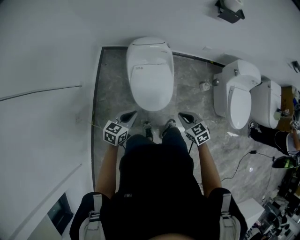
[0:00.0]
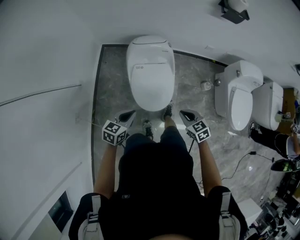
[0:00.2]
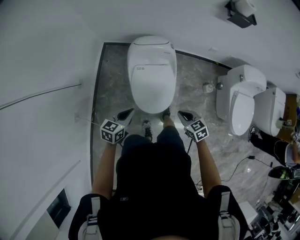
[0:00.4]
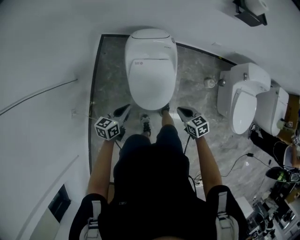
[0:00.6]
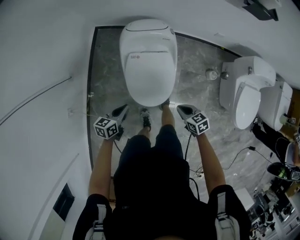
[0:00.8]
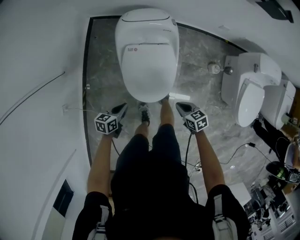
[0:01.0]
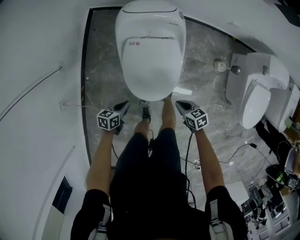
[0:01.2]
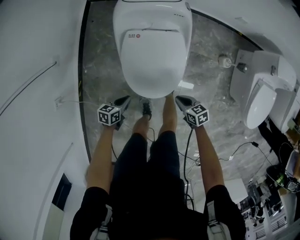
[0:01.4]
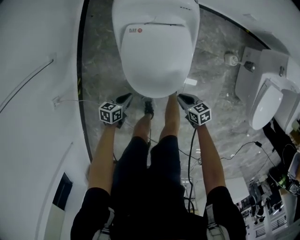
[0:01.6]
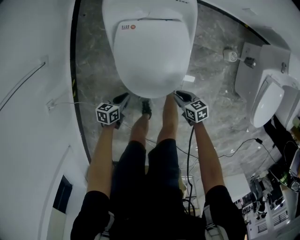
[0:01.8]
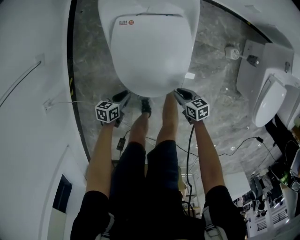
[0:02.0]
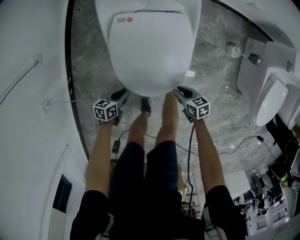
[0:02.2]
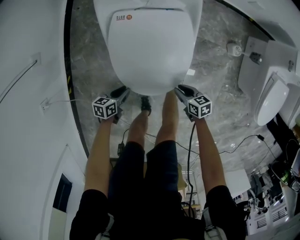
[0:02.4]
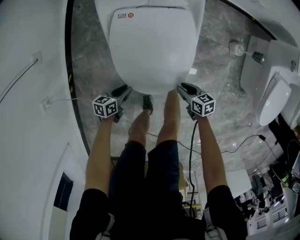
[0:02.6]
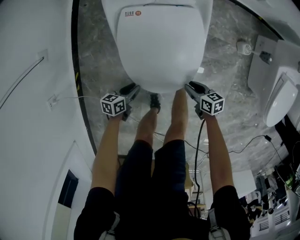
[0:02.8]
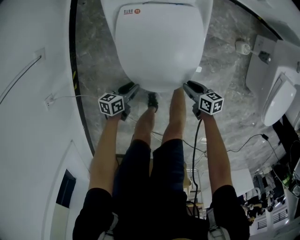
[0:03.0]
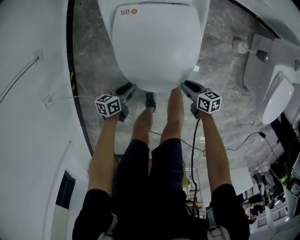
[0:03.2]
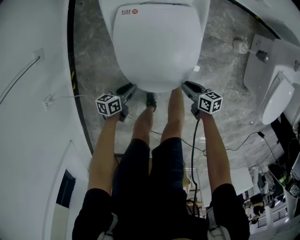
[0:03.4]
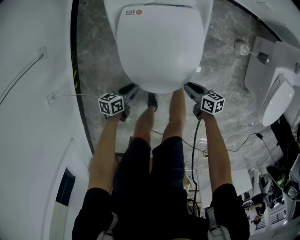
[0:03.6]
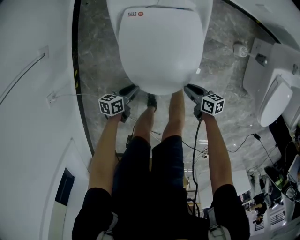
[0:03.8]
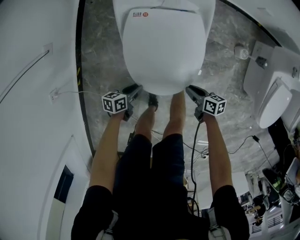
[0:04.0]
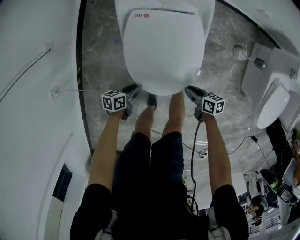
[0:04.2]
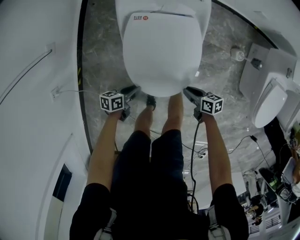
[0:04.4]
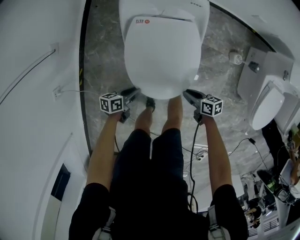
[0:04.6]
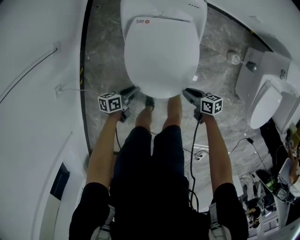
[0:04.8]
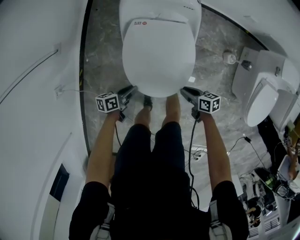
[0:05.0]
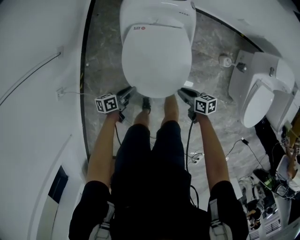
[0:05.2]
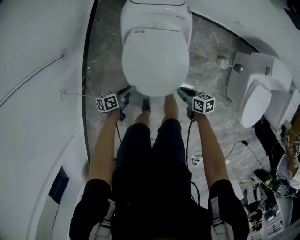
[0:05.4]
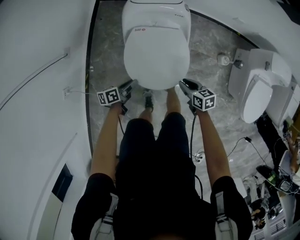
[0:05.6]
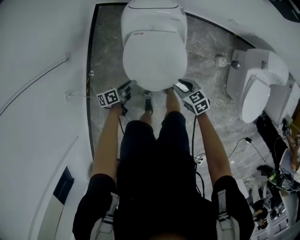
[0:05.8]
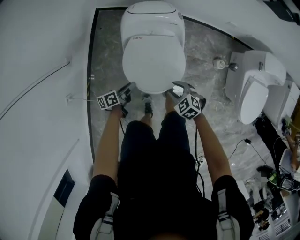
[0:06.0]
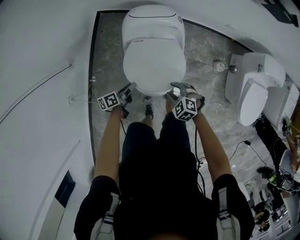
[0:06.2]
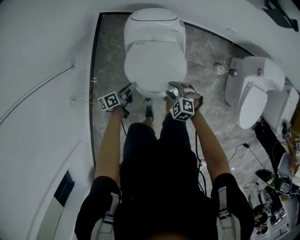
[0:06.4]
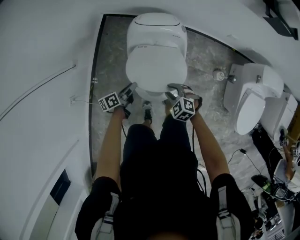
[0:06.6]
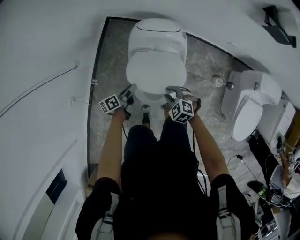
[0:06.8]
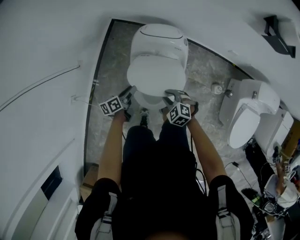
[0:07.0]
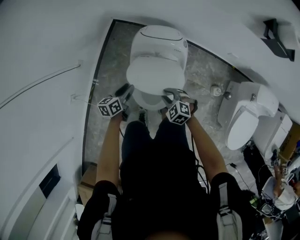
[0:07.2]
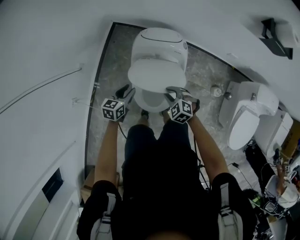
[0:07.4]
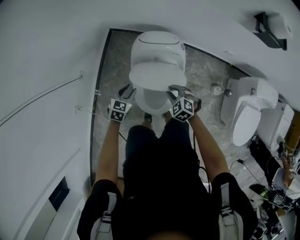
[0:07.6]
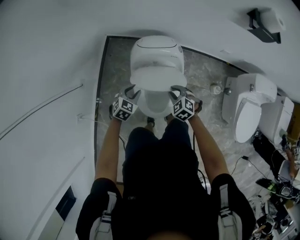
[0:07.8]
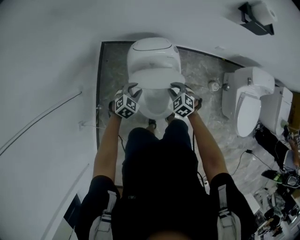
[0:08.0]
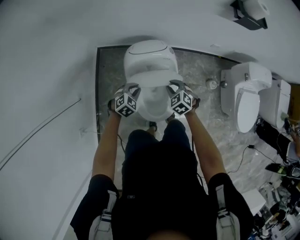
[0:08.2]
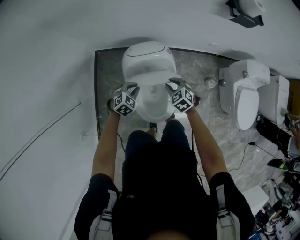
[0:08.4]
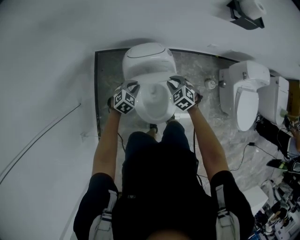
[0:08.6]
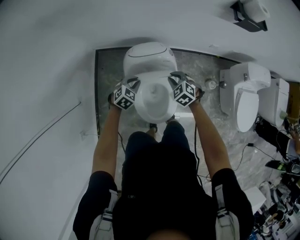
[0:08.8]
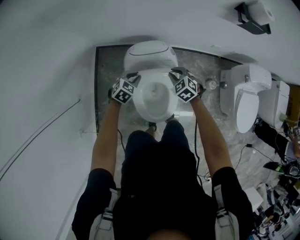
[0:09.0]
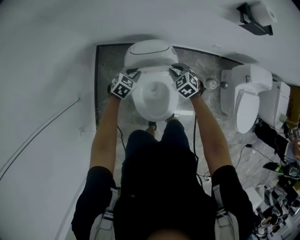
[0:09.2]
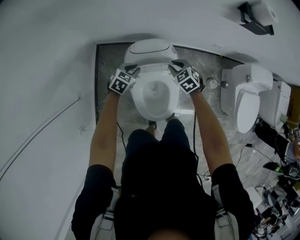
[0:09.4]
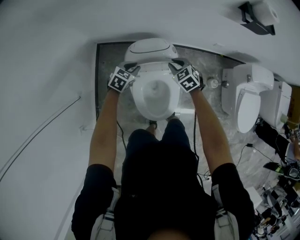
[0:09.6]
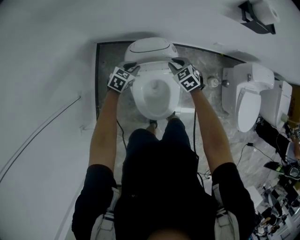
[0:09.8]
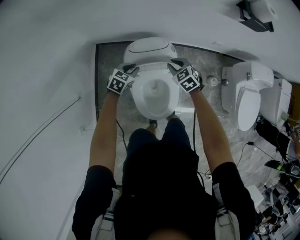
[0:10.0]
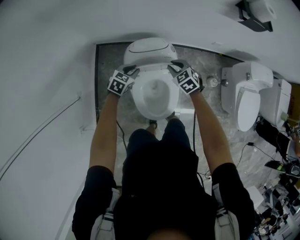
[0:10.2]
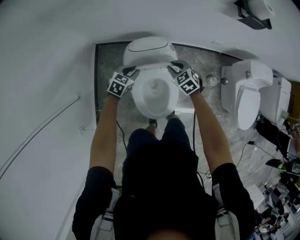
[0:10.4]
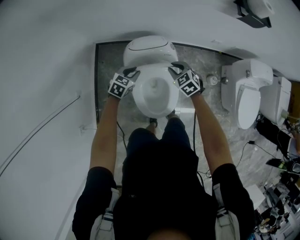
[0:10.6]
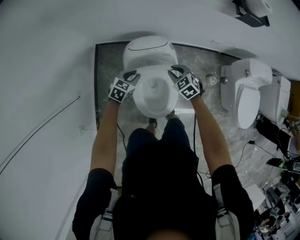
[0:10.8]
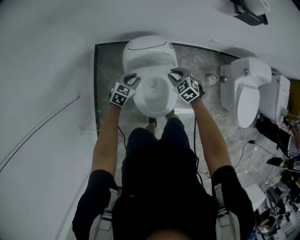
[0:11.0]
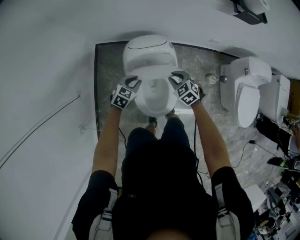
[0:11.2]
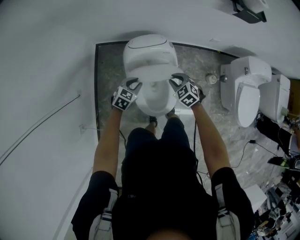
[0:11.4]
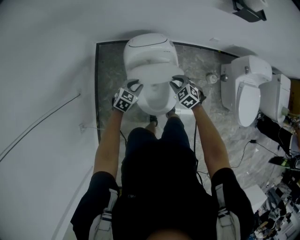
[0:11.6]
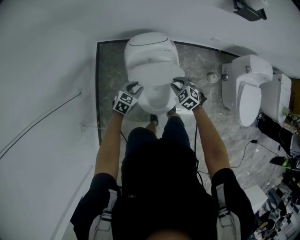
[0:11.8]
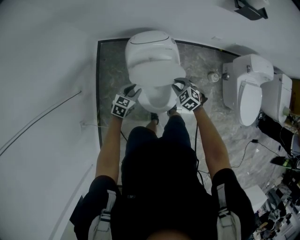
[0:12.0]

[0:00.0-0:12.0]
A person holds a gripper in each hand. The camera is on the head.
0:00.0 to 0:01.6: Both grippers move downward, approximately 40 cm. The left gripper turns by about 30 degrees; the right gripper changes its angle by approximately 30 degrees.
0:01.6 to 0:03.0: Both grippers move downward, some 10 cm. The left gripper opens.
0:03.0 to 0:04.4: The grippers both shift upward by approximately 5 cm.
0:04.4 to 0:06.0: Both grippers travel together upward, approximately 20 cm. The right gripper rolls counterclockwise, seen from behind, by some 60 degrees. The left gripper swivels about 20 degrees.
0:06.0 to 0:07.6: The right gripper is displaced forward and upward by roughly 15 cm, and closes. The left gripper goes approximately 15 cm upward and forward, and rolls clockwise, seen from behind, by approximately 60 degrees.
0:07.6 to 0:09.0: The two grippers go about 15 cm forward. The left gripper turns by roughly 30 degrees.
0:09.0 to 0:10.4: The grippers make only small movements.
0:10.4 to 0:12.0: The grippers both shift backward by roughly 15 cm.

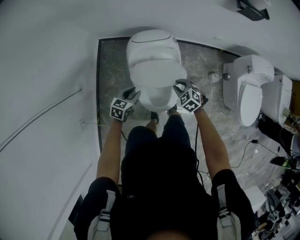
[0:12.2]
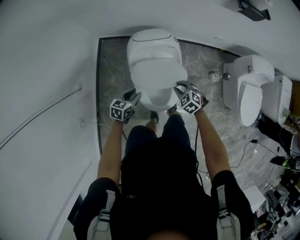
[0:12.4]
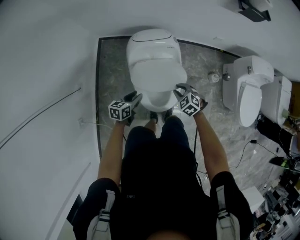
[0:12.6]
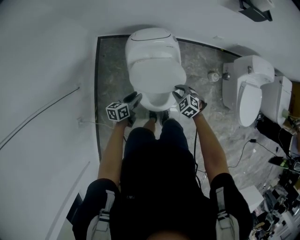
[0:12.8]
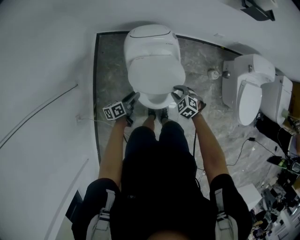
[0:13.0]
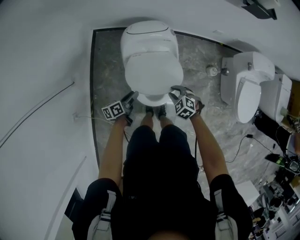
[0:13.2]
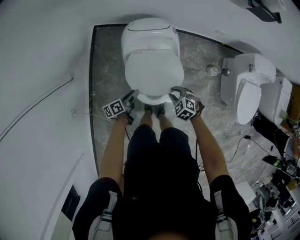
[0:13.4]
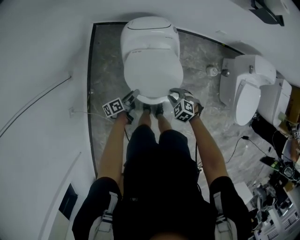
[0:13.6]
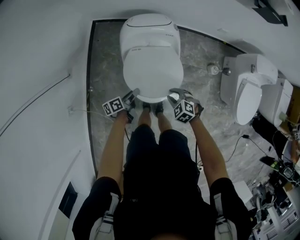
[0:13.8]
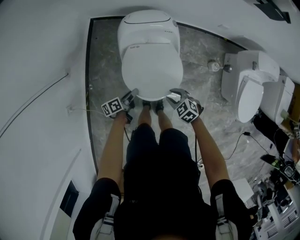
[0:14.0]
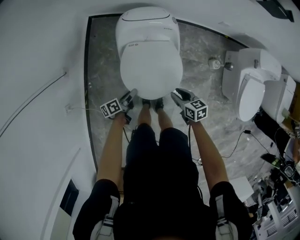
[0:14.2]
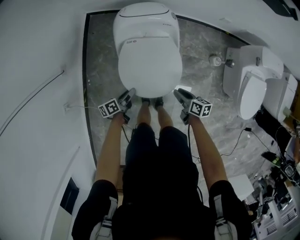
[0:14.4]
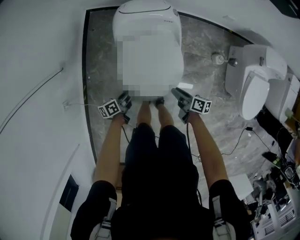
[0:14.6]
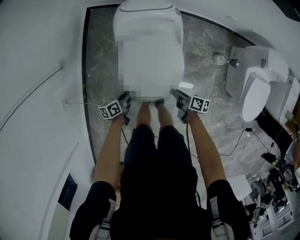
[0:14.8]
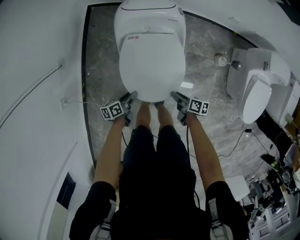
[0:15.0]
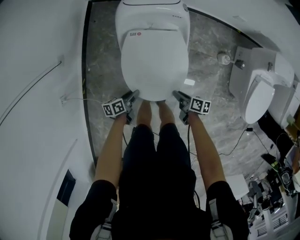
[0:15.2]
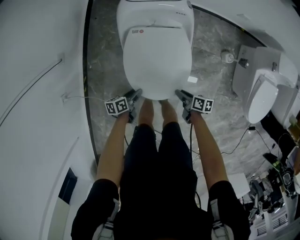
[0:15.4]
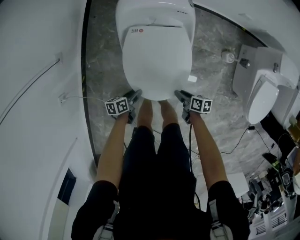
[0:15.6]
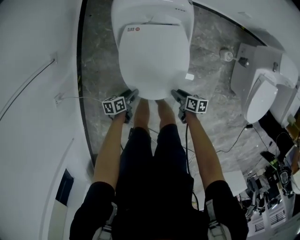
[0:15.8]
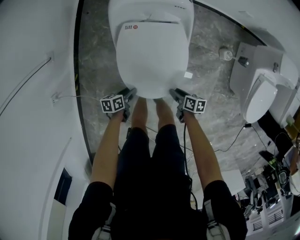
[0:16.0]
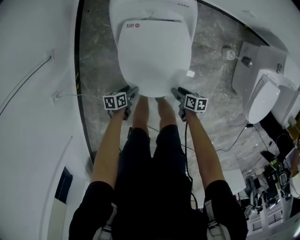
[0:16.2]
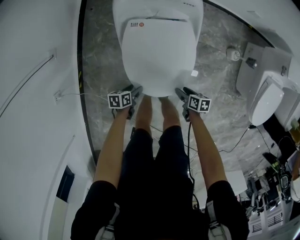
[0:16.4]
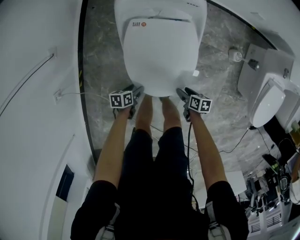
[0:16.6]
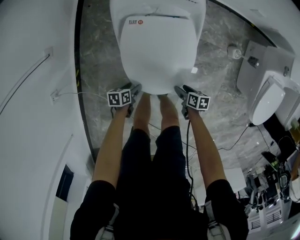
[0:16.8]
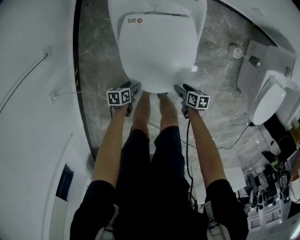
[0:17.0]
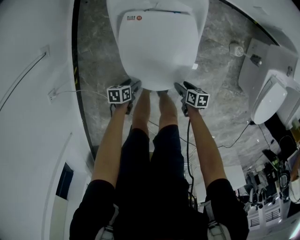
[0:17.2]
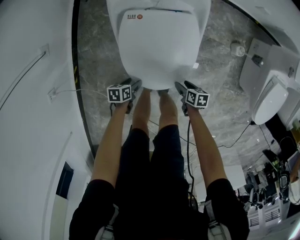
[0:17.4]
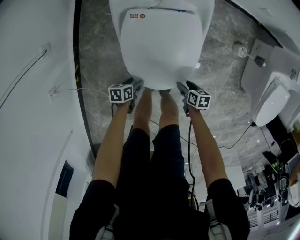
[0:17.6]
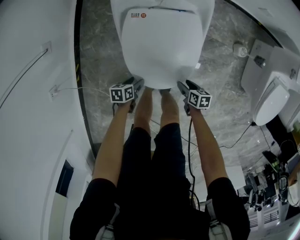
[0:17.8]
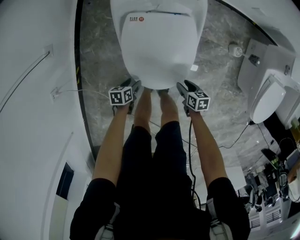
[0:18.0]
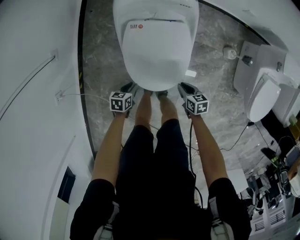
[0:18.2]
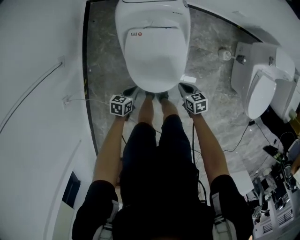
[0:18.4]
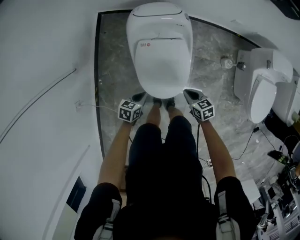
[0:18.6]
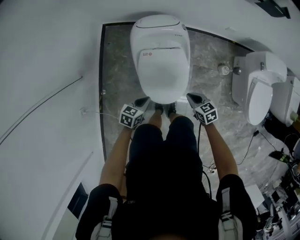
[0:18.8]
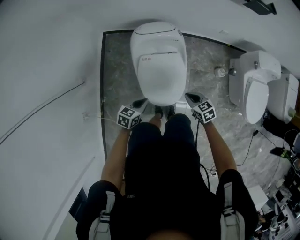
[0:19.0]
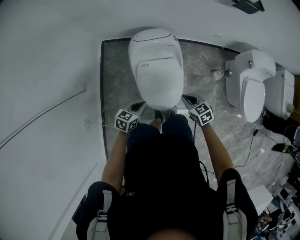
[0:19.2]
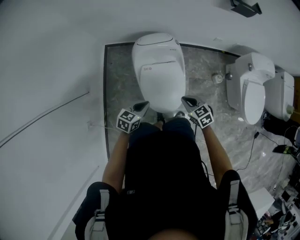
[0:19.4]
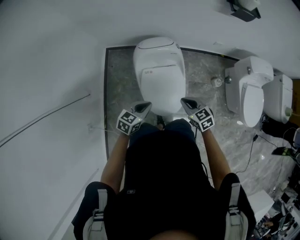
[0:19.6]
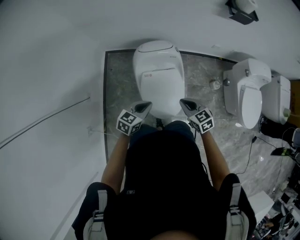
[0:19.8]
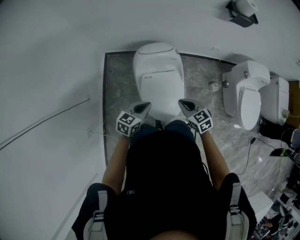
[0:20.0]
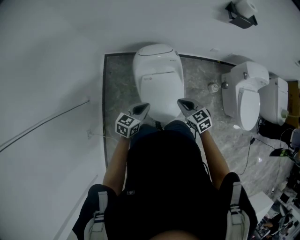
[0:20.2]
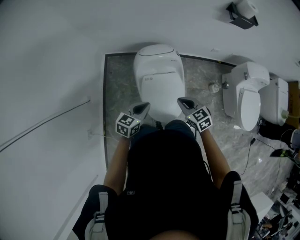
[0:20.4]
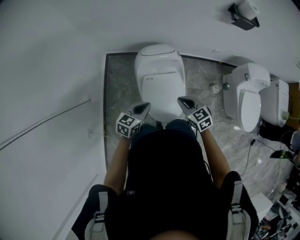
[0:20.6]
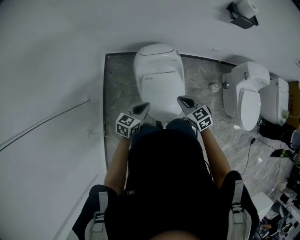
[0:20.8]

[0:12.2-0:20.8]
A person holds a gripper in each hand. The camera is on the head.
0:12.2 to 0:13.6: The left gripper is displaced downward and backward by about 10 cm, and twists approximately 60 degrees counterclockwise, seen from behind, while the right gripper is displaced backward and downward by some 10 cm.
0:13.6 to 0:15.0: The right gripper goes roughly 15 cm downward and to the right, and rotates around the line of its fingers by approximately 90 degrees, clockwise from behind; the left gripper travels downward and backward by roughly 15 cm.
0:15.0 to 0:16.6: Both grippers travel together downward, roughly 15 cm. The left gripper rotates roughly 20 degrees, and opens; the right gripper changes its angle by roughly 20 degrees, and opens up.
0:16.6 to 0:18.0: There are only small adjustments of the grippers.
0:18.0 to 0:19.4: Both grippers move upward, some 40 cm. The left gripper rolls clockwise, seen from behind, by about 40 degrees, and closes. The right gripper turns by about 40 degrees, and closes its fingers.
0:19.4 to 0:20.8: The left gripper goes approximately 5 cm upward. The right gripper goes roughly 10 cm upward and to the left.

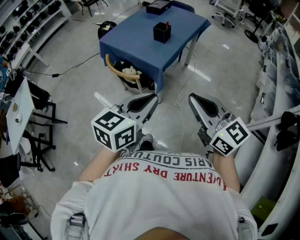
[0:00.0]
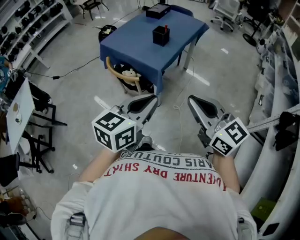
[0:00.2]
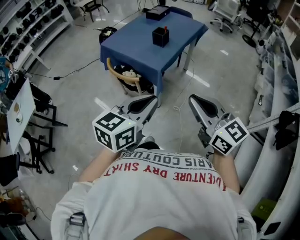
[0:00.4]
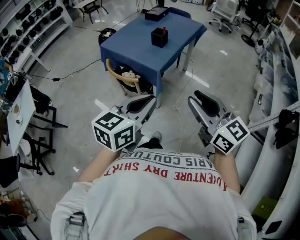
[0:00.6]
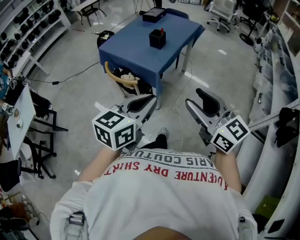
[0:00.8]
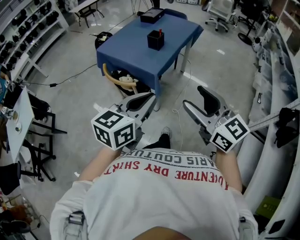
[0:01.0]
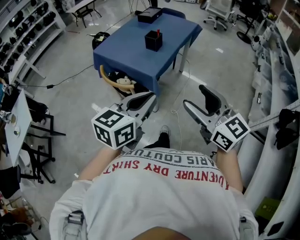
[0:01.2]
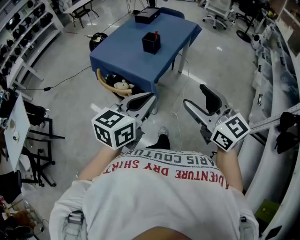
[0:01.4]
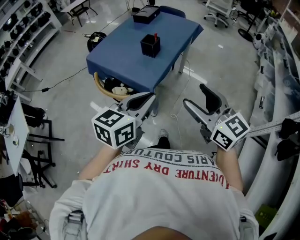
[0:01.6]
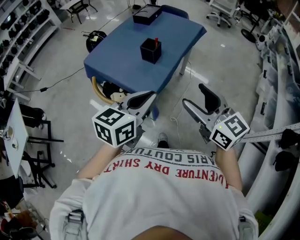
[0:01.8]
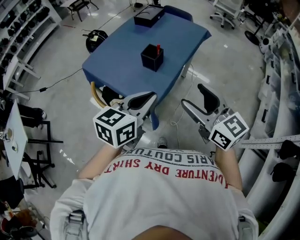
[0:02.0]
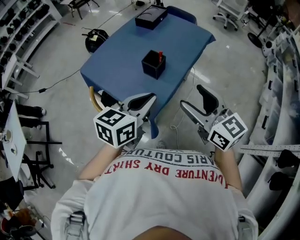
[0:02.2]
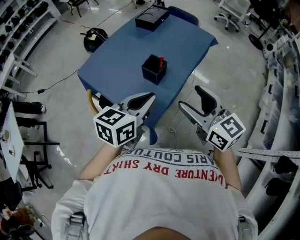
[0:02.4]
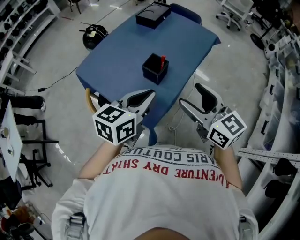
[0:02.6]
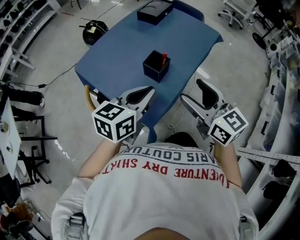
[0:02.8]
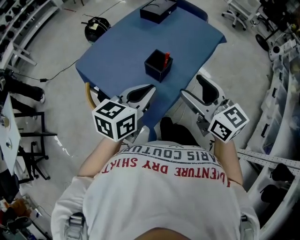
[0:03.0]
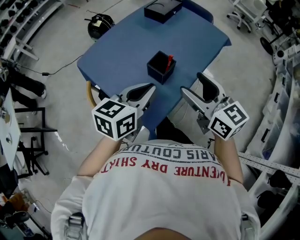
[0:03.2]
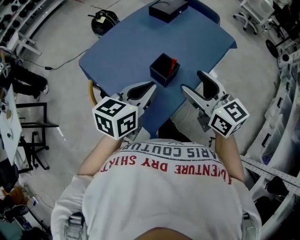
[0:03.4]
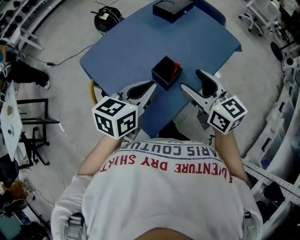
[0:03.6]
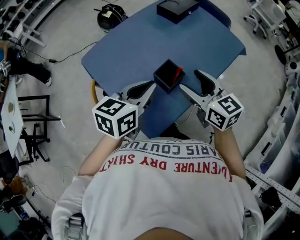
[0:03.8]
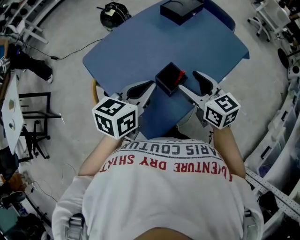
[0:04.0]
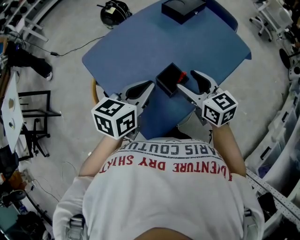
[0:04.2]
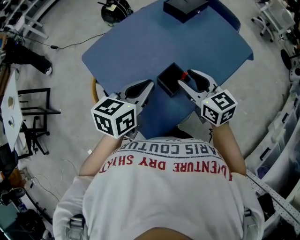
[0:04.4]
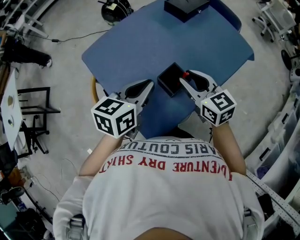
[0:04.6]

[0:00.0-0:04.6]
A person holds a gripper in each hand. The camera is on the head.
0:00.0 to 0:01.6: The two grippers go some 15 cm forward. The right gripper opens its fingers.
0:01.6 to 0:03.0: Both grippers travel together forward, roughly 30 cm.
0:03.0 to 0:04.6: The left gripper moves forward, about 10 cm, while the right gripper is displaced forward and downward by some 20 cm, and closes.
